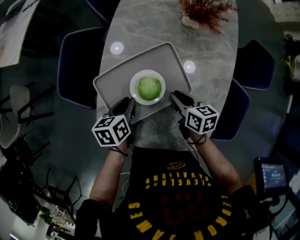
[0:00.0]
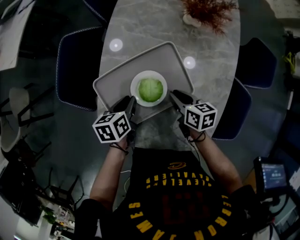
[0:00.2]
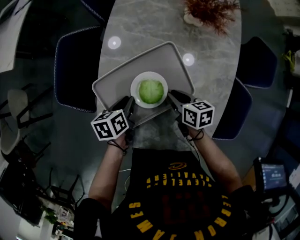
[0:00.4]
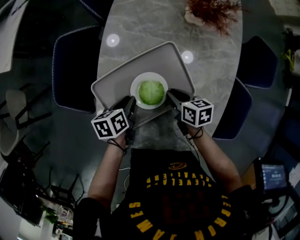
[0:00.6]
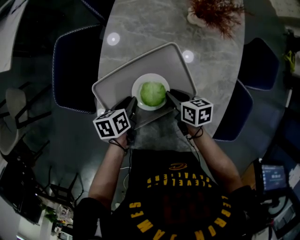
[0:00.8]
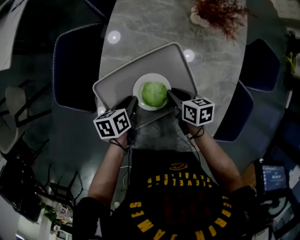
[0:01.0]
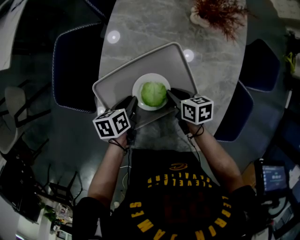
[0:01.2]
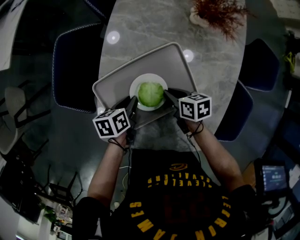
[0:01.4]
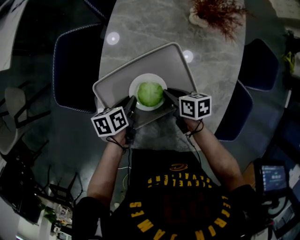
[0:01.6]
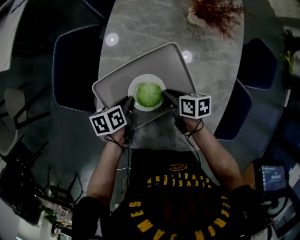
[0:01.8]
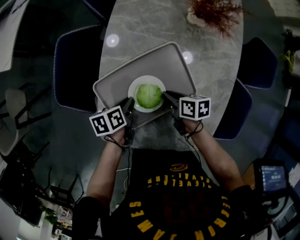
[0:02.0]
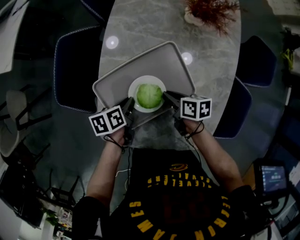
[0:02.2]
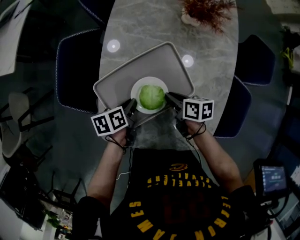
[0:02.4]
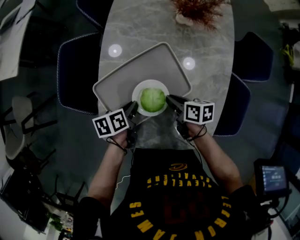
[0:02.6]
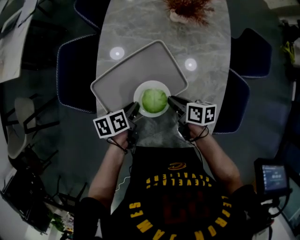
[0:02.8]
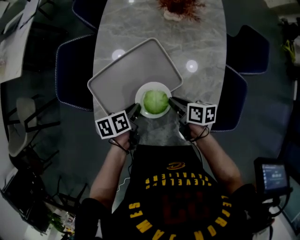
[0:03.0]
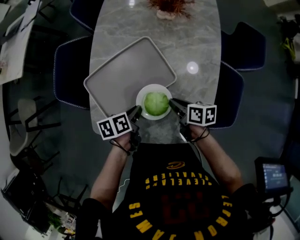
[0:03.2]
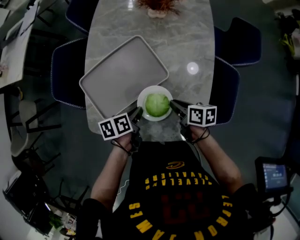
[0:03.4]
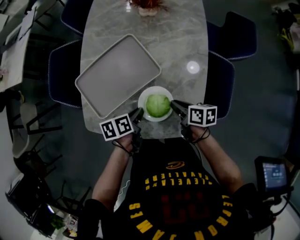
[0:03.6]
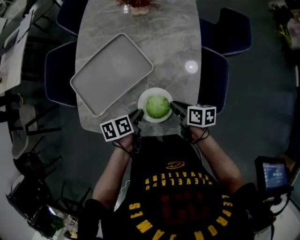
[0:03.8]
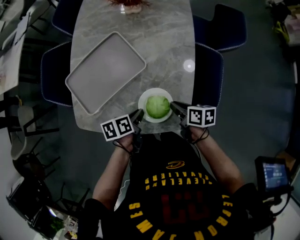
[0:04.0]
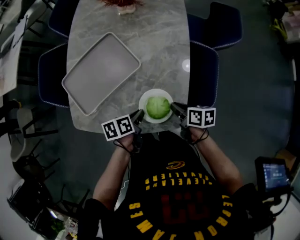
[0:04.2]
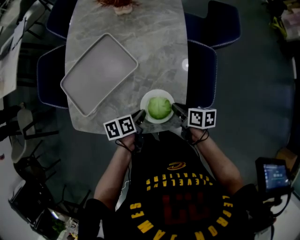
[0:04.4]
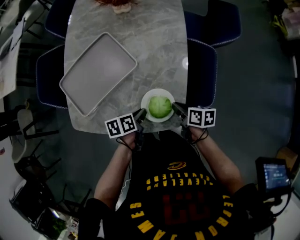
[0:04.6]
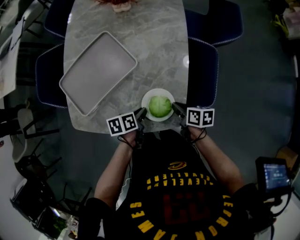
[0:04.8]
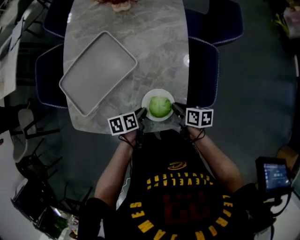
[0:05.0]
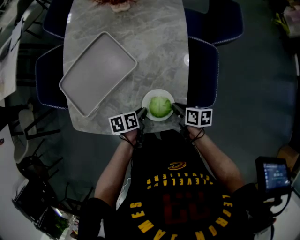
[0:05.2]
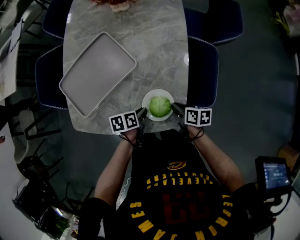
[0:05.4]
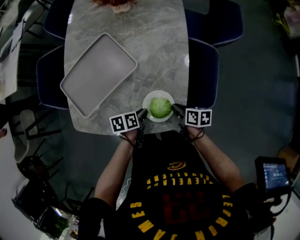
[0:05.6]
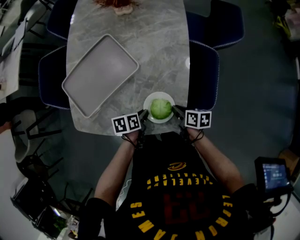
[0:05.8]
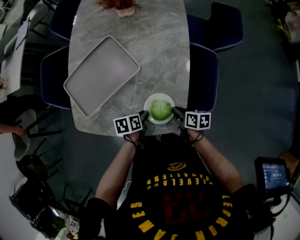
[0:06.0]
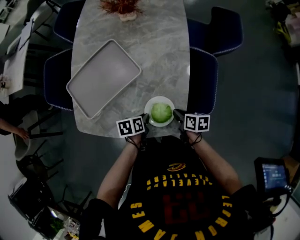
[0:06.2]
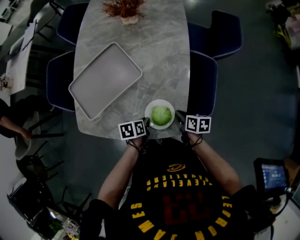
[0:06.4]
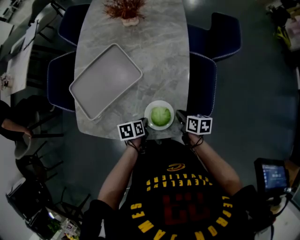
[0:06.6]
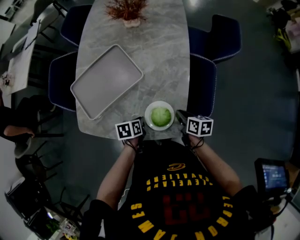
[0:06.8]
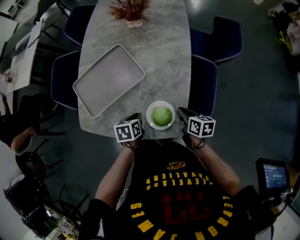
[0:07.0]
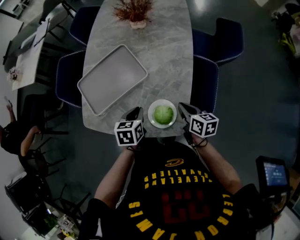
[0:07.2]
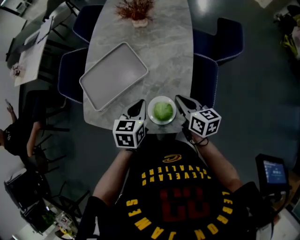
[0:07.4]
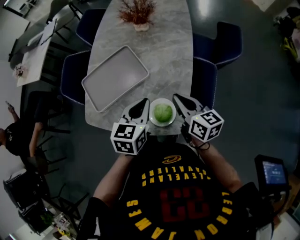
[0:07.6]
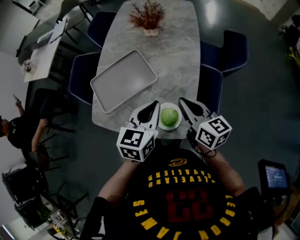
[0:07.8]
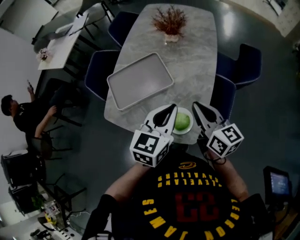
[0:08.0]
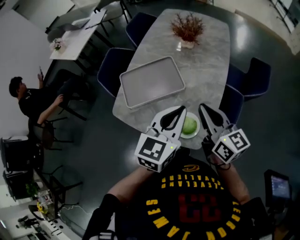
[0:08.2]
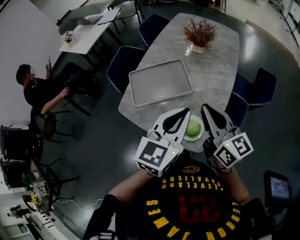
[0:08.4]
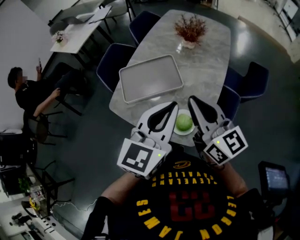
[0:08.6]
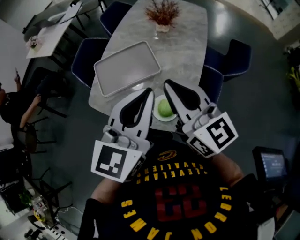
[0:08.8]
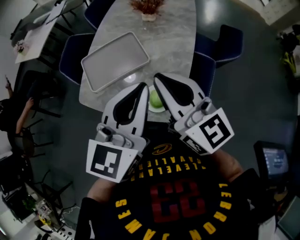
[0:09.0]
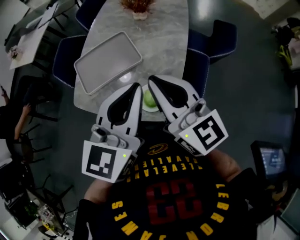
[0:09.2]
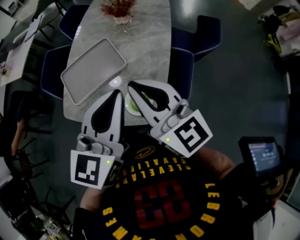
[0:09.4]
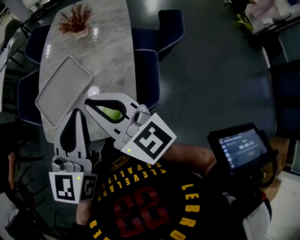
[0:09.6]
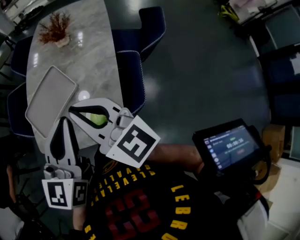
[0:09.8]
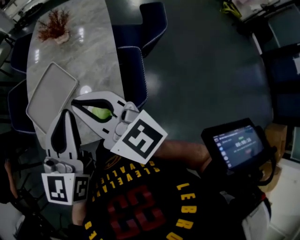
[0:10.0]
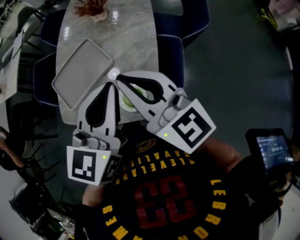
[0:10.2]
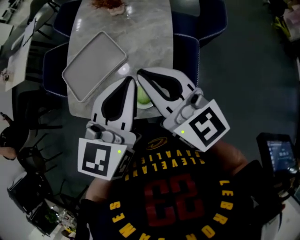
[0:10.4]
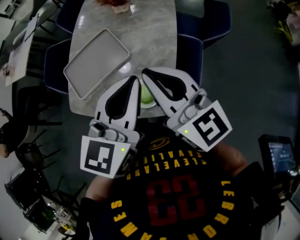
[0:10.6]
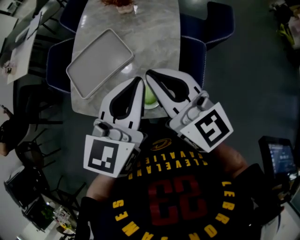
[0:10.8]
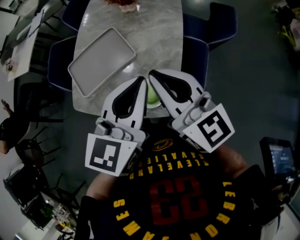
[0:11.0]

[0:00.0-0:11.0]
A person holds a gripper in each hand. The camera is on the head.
0:00.0 to 0:01.6: Both grippers travel together downward, some 5 cm.
0:01.6 to 0:03.2: The two grippers go some 10 cm to the right and backward.
0:03.2 to 0:04.8: The left gripper travels to the right, downward and backward by approximately 15 cm, while the right gripper shifts roughly 15 cm to the right and backward.
0:04.8 to 0:06.2: There are only small adjustments of the grippers.
0:06.2 to 0:07.8: The grippers both shift upward by about 25 cm. The right gripper tips its fingers upward by approximately 40 degrees. Meanwhile the left gripper tips its fingers upward by approximately 30 degrees.
0:07.8 to 0:09.4: The right gripper goes about 15 cm upward and to the left, and turns by about 30 degrees, while the left gripper heads upward, covering some 15 cm.
0:09.4 to 0:11.0: The grippers stay close to where they were, moving slightly.

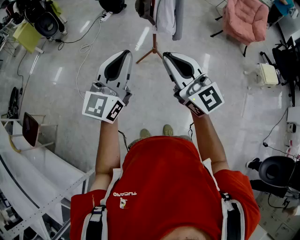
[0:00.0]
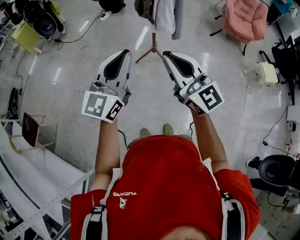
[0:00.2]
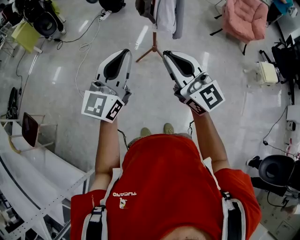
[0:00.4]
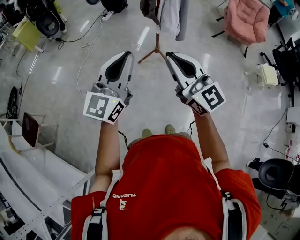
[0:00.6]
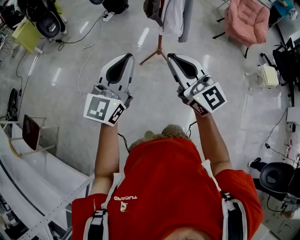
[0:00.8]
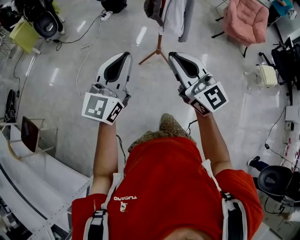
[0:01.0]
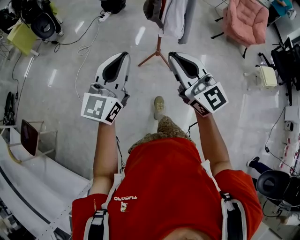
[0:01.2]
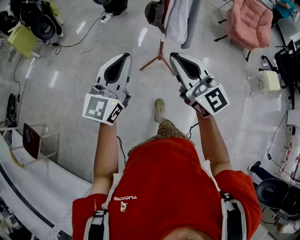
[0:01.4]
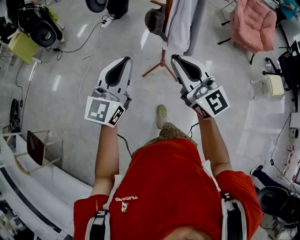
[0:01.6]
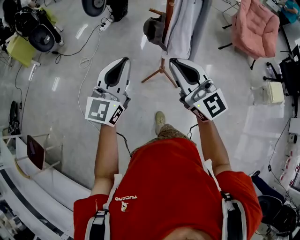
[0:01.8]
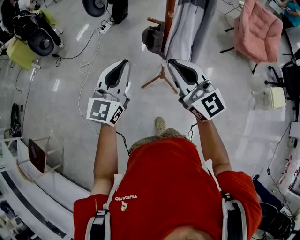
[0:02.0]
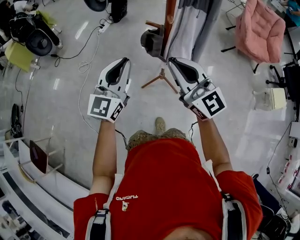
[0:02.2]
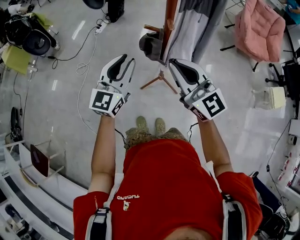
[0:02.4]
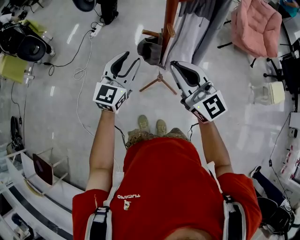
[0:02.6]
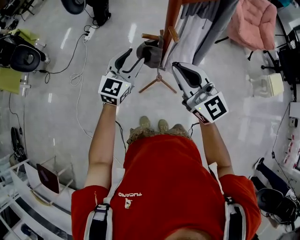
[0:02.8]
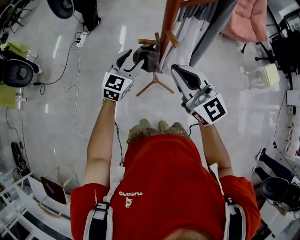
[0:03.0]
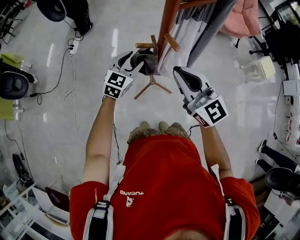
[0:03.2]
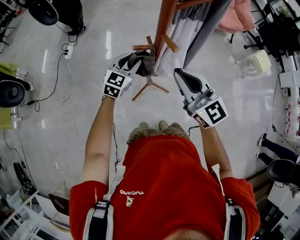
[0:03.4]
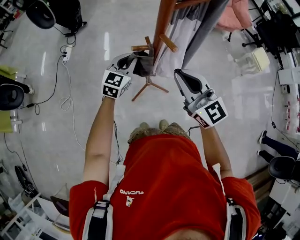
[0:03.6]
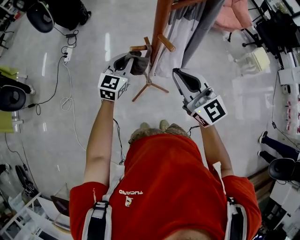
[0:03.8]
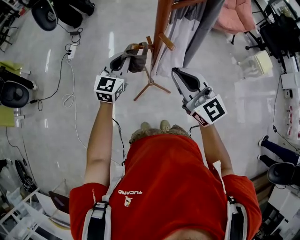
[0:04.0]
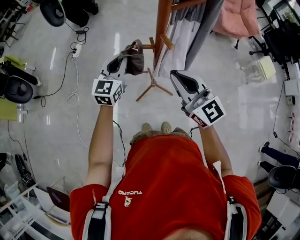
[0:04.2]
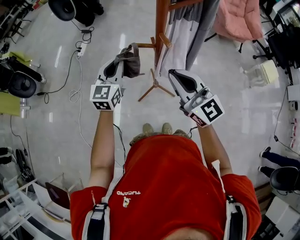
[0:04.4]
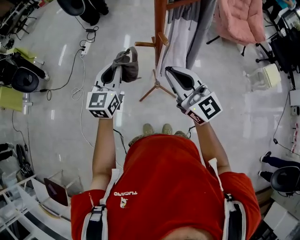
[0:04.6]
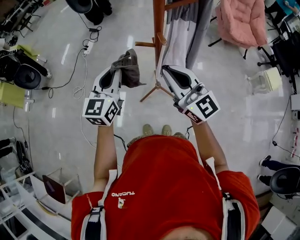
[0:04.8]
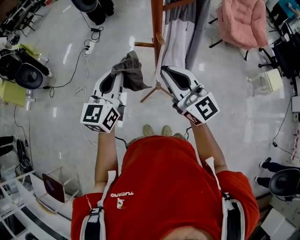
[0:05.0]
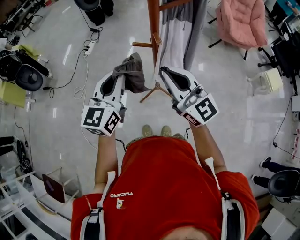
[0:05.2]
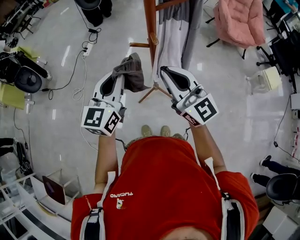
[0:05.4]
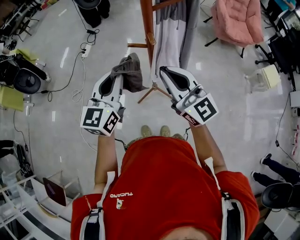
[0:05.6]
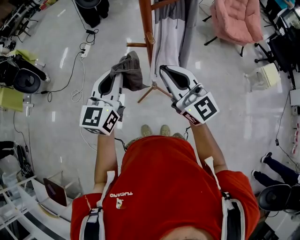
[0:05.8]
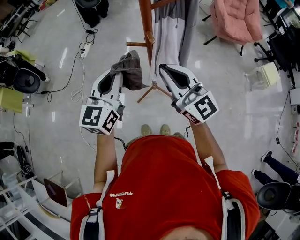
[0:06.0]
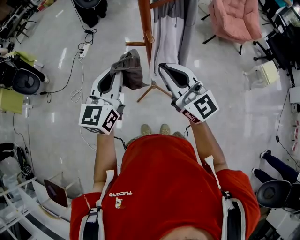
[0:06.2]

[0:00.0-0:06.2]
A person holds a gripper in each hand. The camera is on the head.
0:00.0 to 0:01.6: Both grippers travel together forward, some 20 cm.
0:01.6 to 0:03.2: The right gripper goes about 30 cm forward, and turns by roughly 20 degrees, while the left gripper moves forward and downward, roughly 50 cm, rotates some 40 degrees, and opens.
0:03.2 to 0:04.6: The left gripper shifts roughly 15 cm upward, backward and to the left, turns by about 30 degrees, and closes its fingers.
0:04.6 to 0:06.2: The left gripper heads upward and backward, covering some 10 cm.

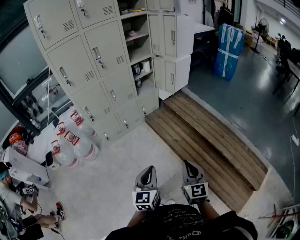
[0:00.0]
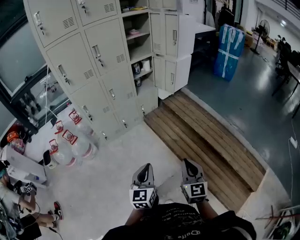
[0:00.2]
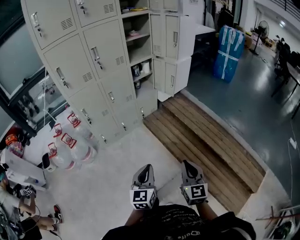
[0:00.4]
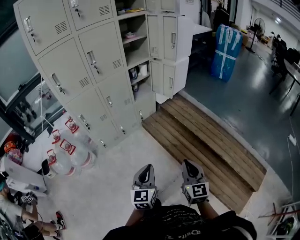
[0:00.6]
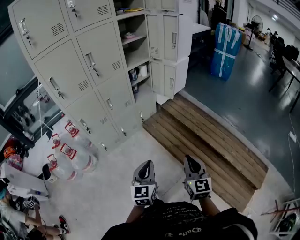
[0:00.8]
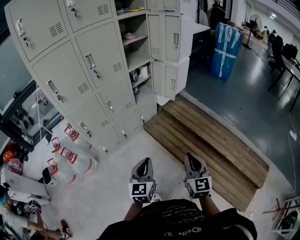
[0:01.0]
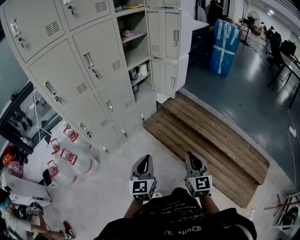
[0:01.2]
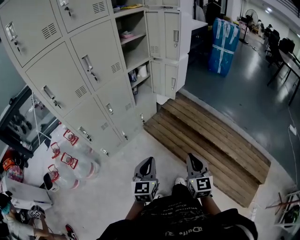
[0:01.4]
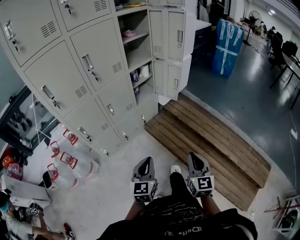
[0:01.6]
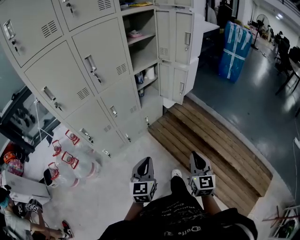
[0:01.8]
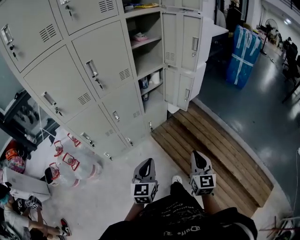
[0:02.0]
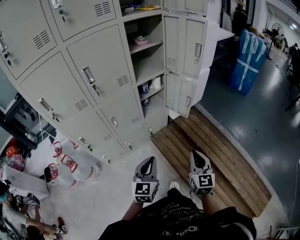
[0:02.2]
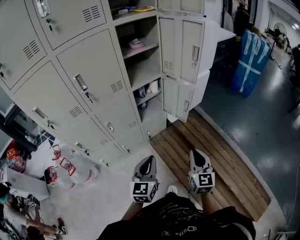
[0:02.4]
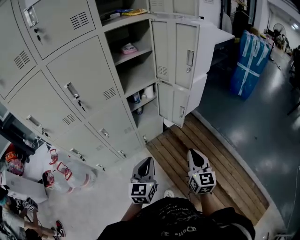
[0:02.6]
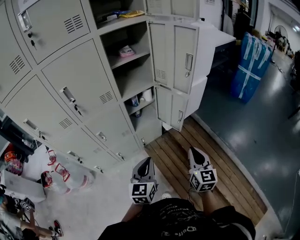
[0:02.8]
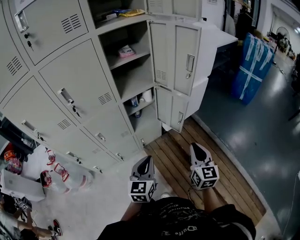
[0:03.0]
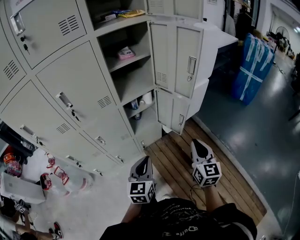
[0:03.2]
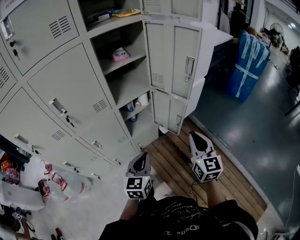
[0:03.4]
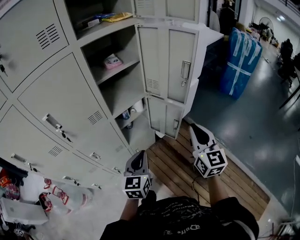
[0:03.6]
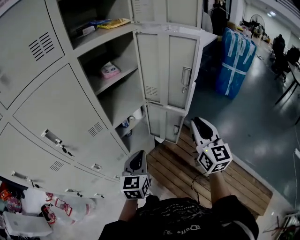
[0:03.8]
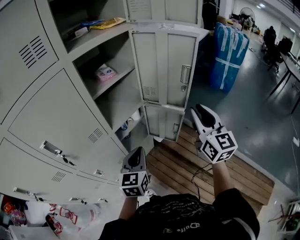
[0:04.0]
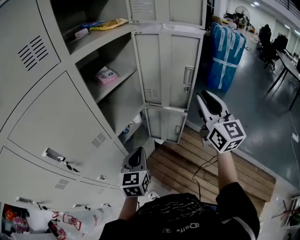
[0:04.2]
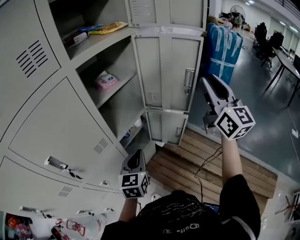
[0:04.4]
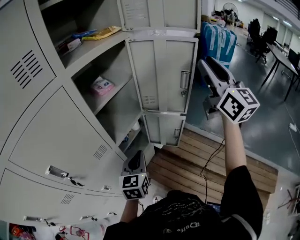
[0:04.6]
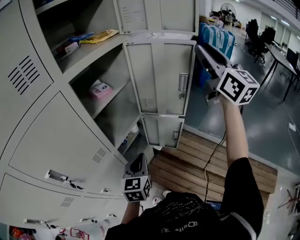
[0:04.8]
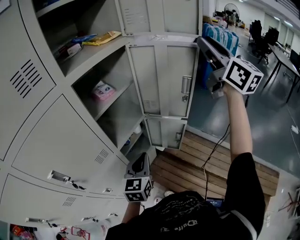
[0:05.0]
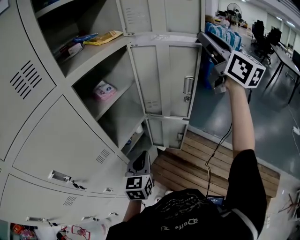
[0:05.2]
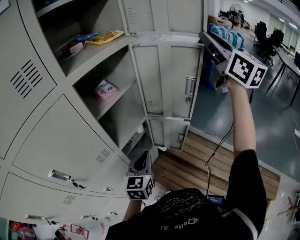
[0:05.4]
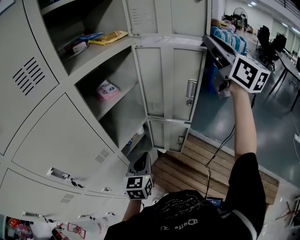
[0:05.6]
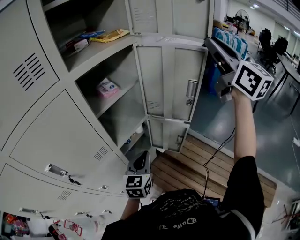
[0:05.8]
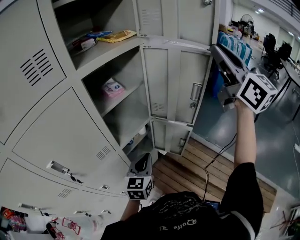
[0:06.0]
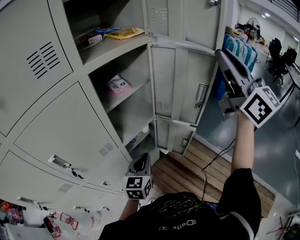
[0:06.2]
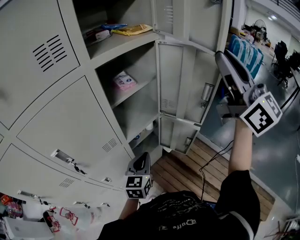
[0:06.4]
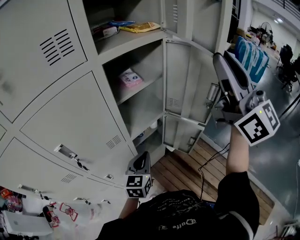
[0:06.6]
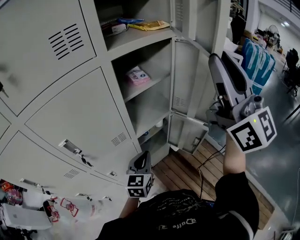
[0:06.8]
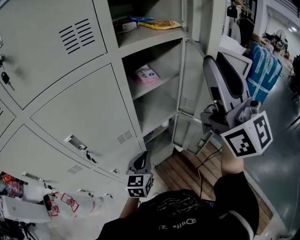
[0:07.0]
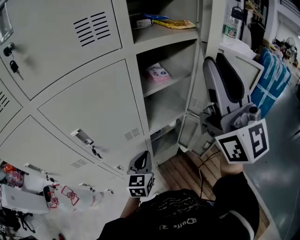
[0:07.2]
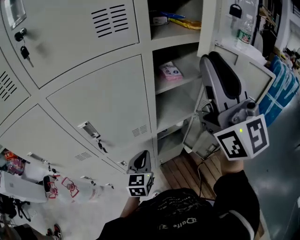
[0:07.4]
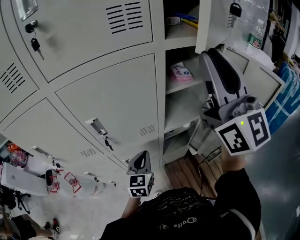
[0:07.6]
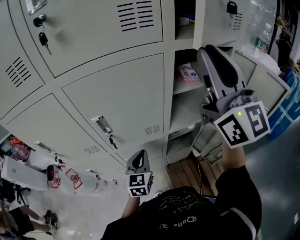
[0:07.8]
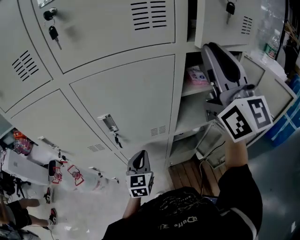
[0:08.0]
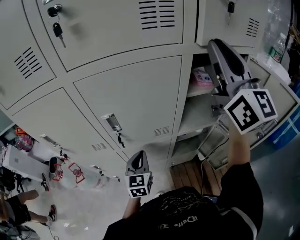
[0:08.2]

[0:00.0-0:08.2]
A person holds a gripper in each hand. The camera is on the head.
0:00.0 to 0:01.6: The left gripper is displaced forward and to the left by about 25 cm. The right gripper goes some 20 cm forward.
0:01.6 to 0:03.2: The grippers both shift forward by about 35 cm.
0:03.2 to 0:05.0: The left gripper goes about 20 cm forward, and swivels about 20 degrees; the right gripper travels upward and forward by about 50 cm, rotates roughly 30 degrees, and opens.
0:05.0 to 0:06.6: The right gripper goes roughly 15 cm to the left and backward, and changes its angle by roughly 20 degrees. Meanwhile the left gripper changes place by some 5 cm.
0:06.6 to 0:08.2: The right gripper changes place by some 25 cm; the left gripper moves some 20 cm, and changes its angle by some 40 degrees.
